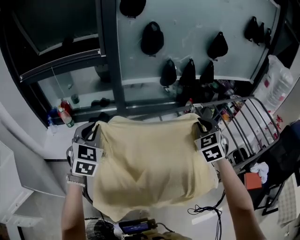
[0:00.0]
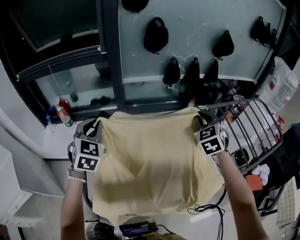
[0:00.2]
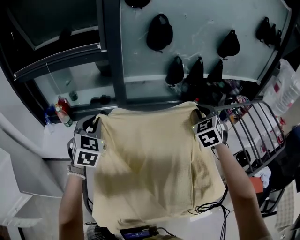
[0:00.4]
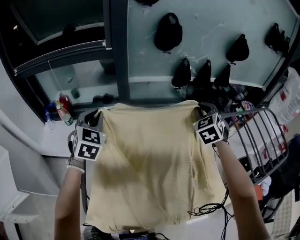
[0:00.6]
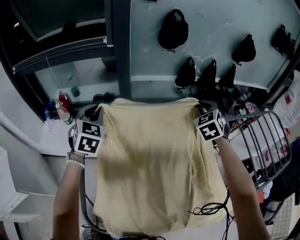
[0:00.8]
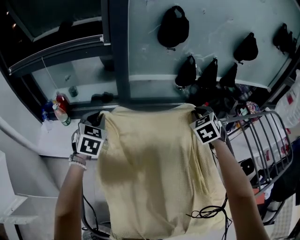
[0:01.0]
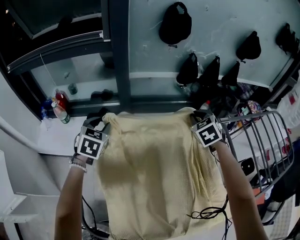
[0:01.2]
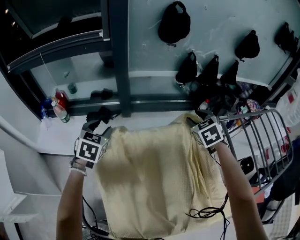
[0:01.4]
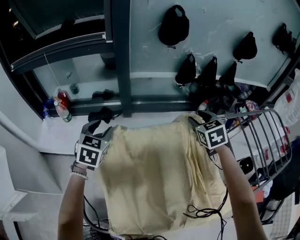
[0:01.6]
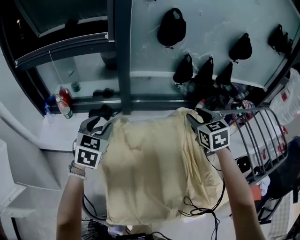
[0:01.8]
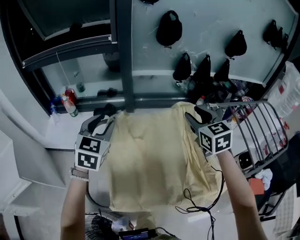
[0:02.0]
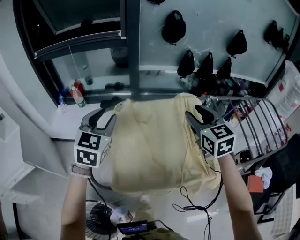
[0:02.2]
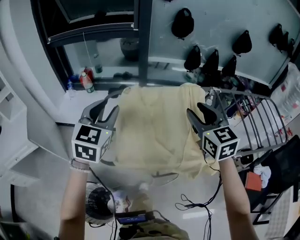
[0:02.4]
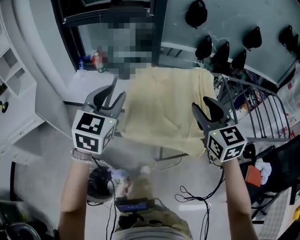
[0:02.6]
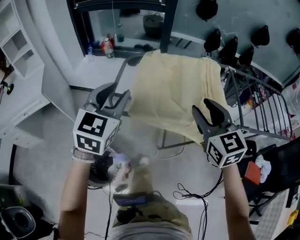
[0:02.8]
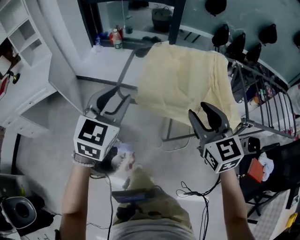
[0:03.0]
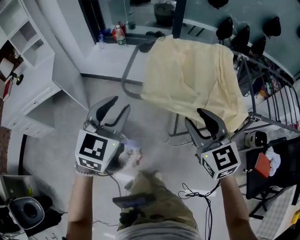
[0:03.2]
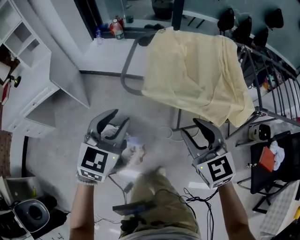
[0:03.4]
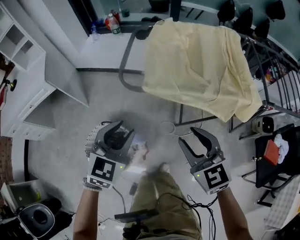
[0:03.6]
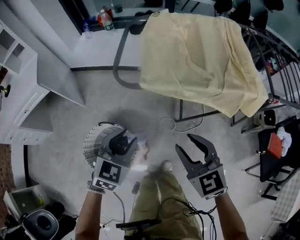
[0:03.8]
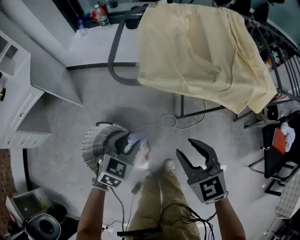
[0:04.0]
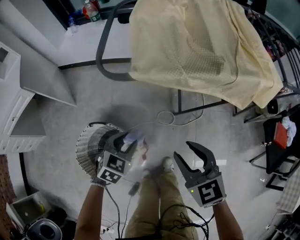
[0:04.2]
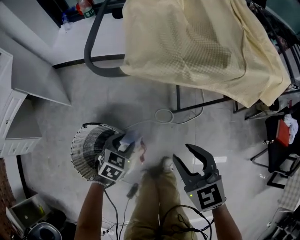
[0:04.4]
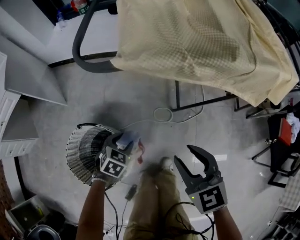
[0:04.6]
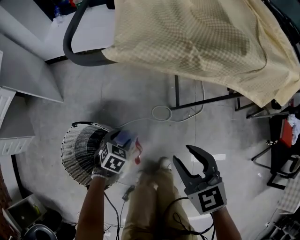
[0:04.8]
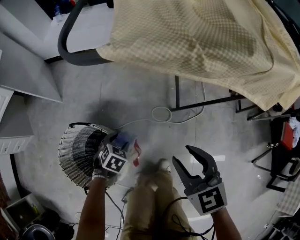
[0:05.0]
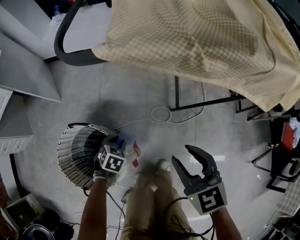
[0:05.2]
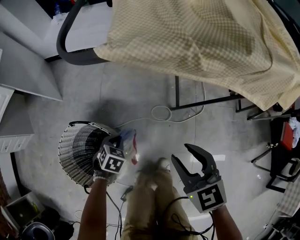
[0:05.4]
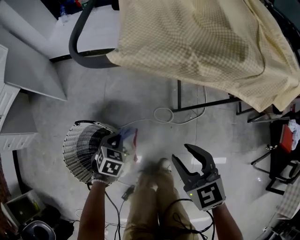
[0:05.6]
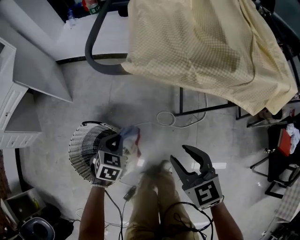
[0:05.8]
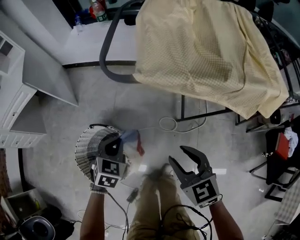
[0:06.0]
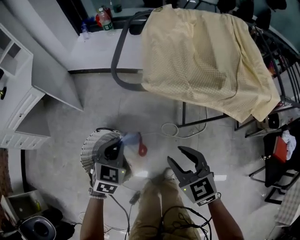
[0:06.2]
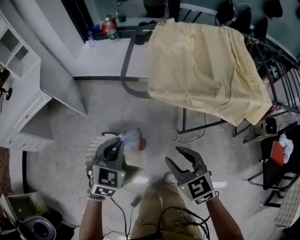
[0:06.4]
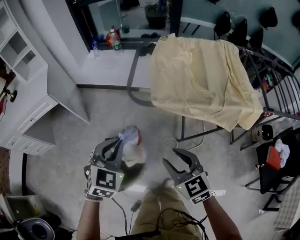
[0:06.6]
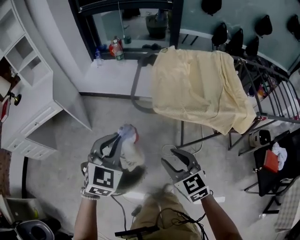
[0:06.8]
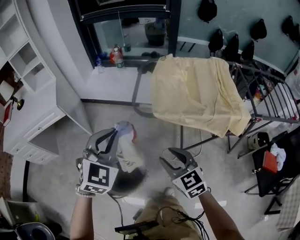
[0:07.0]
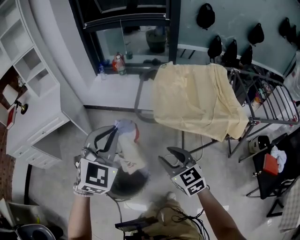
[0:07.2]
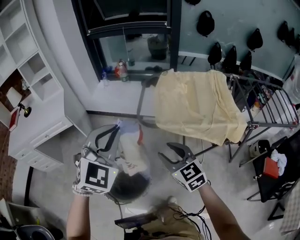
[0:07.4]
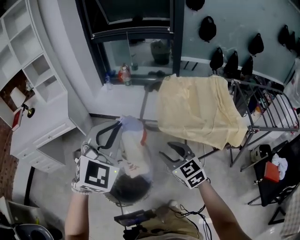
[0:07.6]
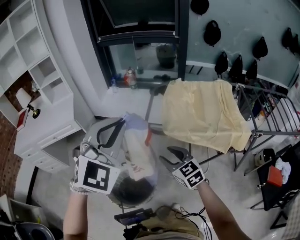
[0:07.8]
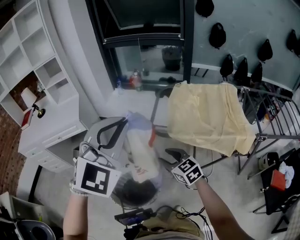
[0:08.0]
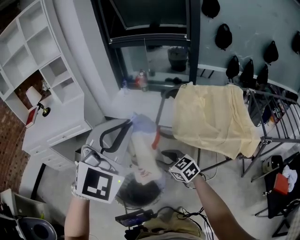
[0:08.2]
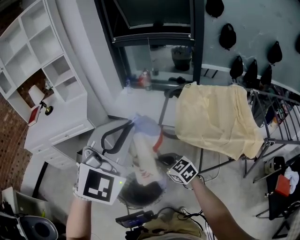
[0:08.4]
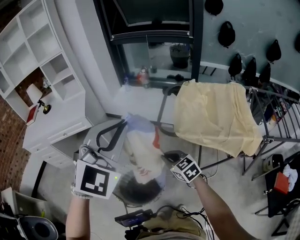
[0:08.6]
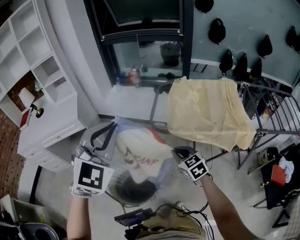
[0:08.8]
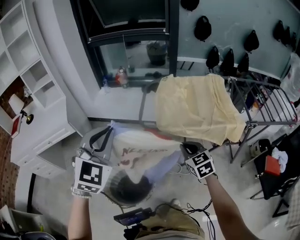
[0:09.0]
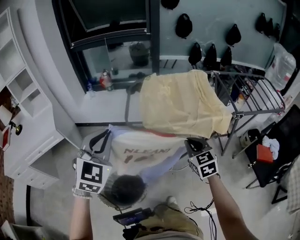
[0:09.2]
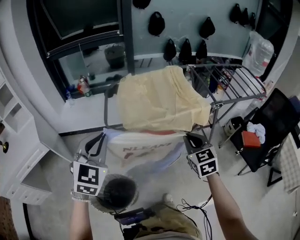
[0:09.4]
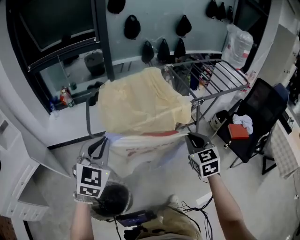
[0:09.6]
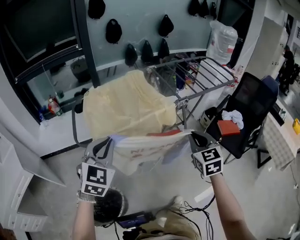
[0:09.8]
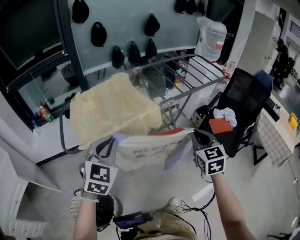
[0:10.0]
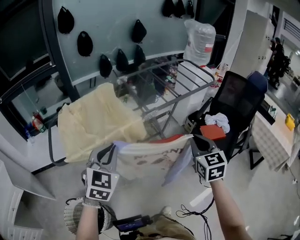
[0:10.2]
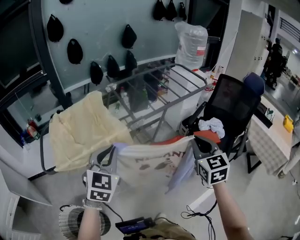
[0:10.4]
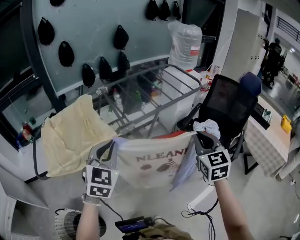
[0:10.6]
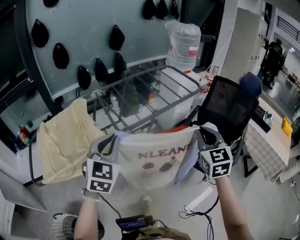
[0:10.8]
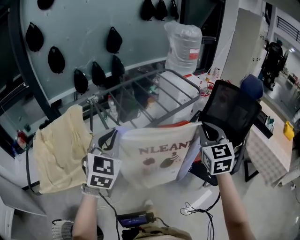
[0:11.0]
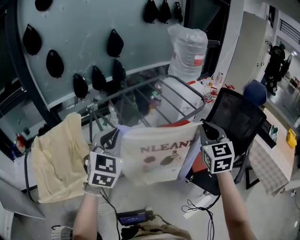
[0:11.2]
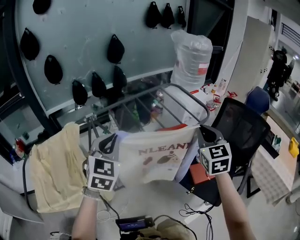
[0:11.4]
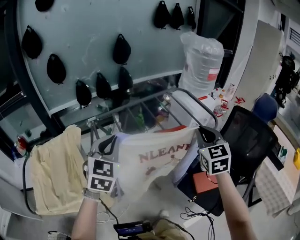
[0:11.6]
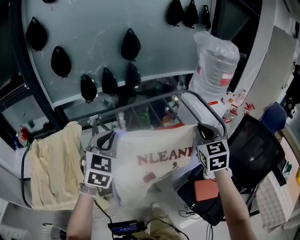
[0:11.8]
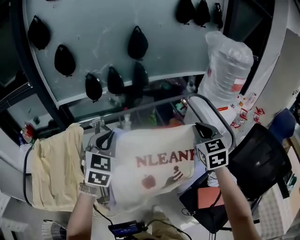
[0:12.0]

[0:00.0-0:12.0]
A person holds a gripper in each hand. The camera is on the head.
0.0 to 1.6 s: The left gripper shifts some 20 cm forward and downward, rotates approximately 20 degrees, and opens. The right gripper heads forward, downward and to the left, covering roughly 20 cm, and opens.
1.6 to 3.0 s: The pair of grippers is taken backward, some 50 cm. The right gripper changes its angle by some 40 degrees.
3.0 to 4.4 s: The left gripper travels downward by about 50 cm, and points its fingers roughly 40 degrees further downward, while the right gripper heads downward, covering roughly 30 cm, and rotates approximately 20 degrees.
4.4 to 6.0 s: The right gripper reaches some 10 cm downward, then returns. Meanwhile the left gripper travels downward and back again, about 15 cm each way, and closes up.
6.0 to 7.6 s: The left gripper travels upward by some 50 cm, and tilts its fingers some 40 degrees upward; the right gripper travels upward by about 25 cm.
7.6 to 9.0 s: The right gripper heads to the right, covering roughly 10 cm, and closes its fingers. Meanwhile the left gripper goes upward and returns, roughly 10 cm each way.
9.0 to 10.4 s: The two grippers travel together, about 60 cm. The right gripper changes its angle by some 50 degrees, while the left gripper rotates approximately 30 degrees.
10.4 to 12.0 s: The two grippers travel together, forward, roughly 50 cm.

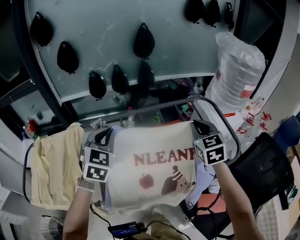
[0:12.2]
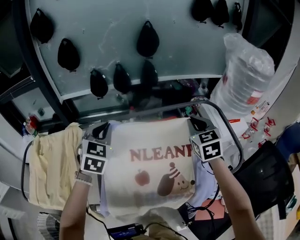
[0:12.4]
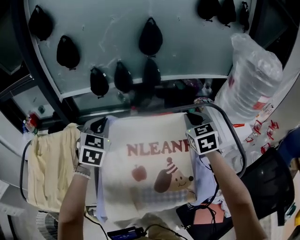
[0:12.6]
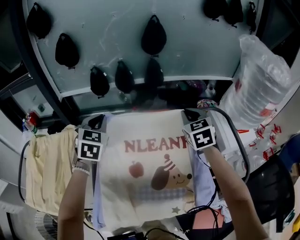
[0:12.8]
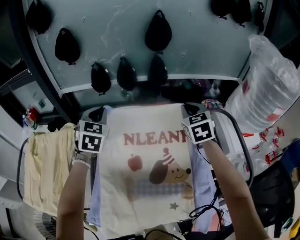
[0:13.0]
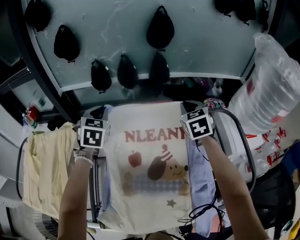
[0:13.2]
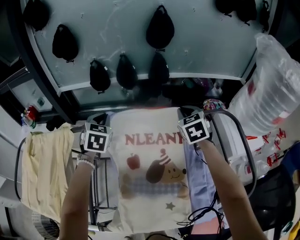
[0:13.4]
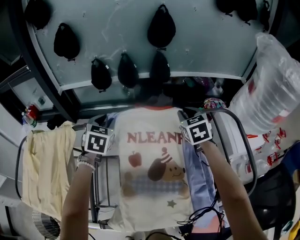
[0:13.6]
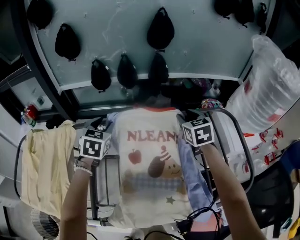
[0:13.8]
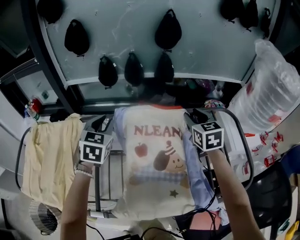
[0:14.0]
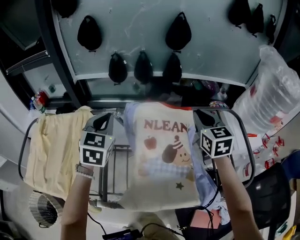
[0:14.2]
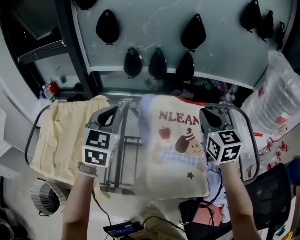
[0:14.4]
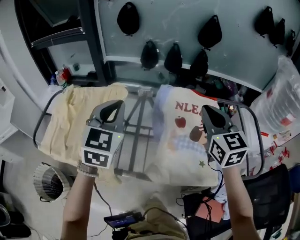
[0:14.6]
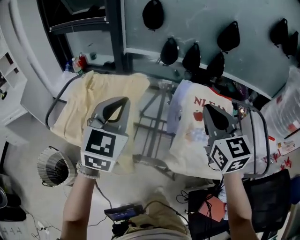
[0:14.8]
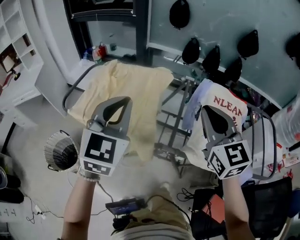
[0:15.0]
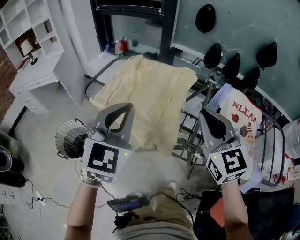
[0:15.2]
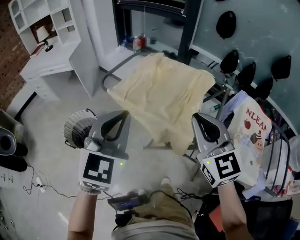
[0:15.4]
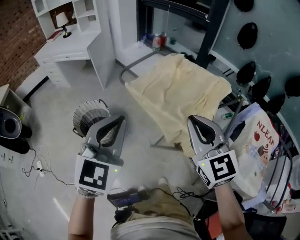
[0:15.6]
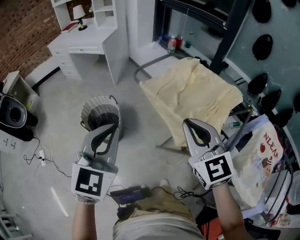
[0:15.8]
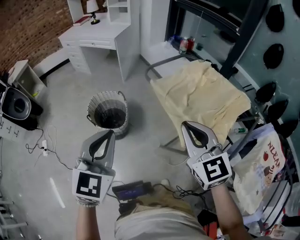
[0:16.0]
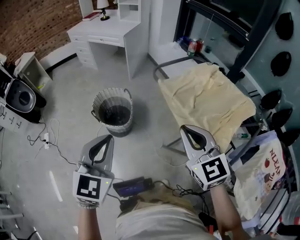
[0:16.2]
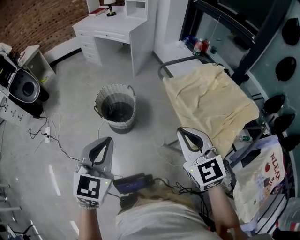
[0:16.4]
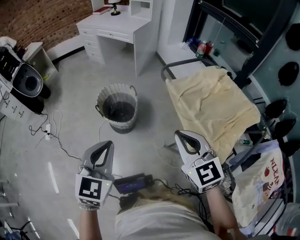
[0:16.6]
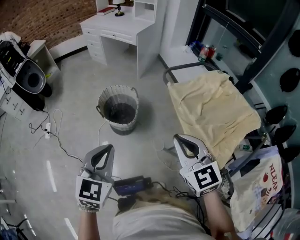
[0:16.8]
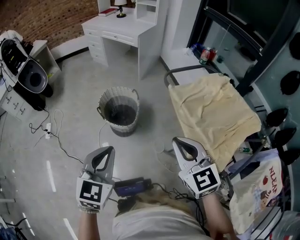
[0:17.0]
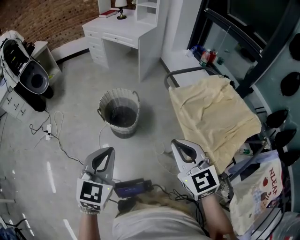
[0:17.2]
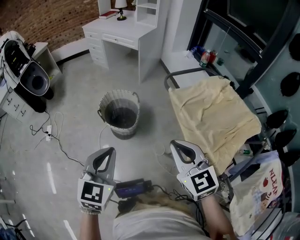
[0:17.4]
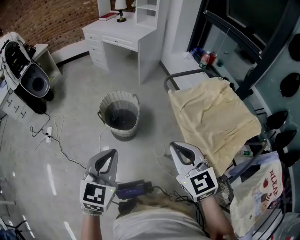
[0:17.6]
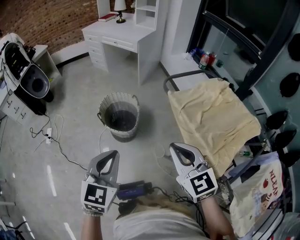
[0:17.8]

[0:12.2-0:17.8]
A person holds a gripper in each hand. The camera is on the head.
12.2 to 13.6 s: The two grippers go roughly 25 cm forward and downward. The left gripper swivels roughly 20 degrees, and opens.
13.6 to 15.0 s: The two grippers travel together, backward and to the left, roughly 50 cm. Both grippers travel together upward, some 20 cm. The left gripper rotates approximately 30 degrees, and closes its fingers; the right gripper changes its angle by approximately 40 degrees, and opens, then closes again.
15.0 to 16.4 s: The two grippers travel together, roughly 40 cm. The right gripper changes its angle by about 50 degrees; the left gripper turns by roughly 50 degrees.
16.4 to 17.8 s: The grippers move only a little.

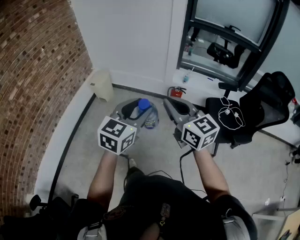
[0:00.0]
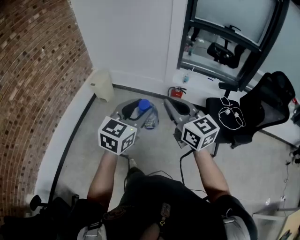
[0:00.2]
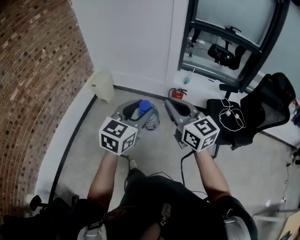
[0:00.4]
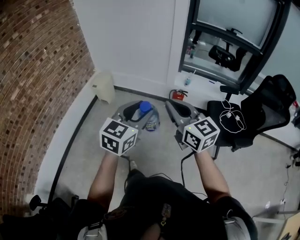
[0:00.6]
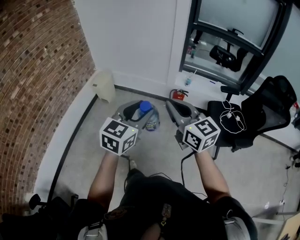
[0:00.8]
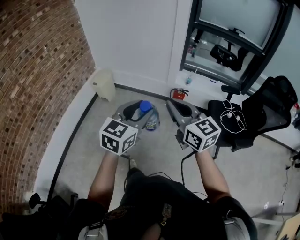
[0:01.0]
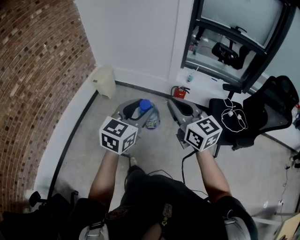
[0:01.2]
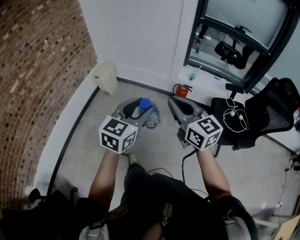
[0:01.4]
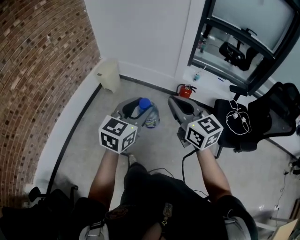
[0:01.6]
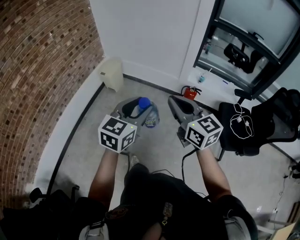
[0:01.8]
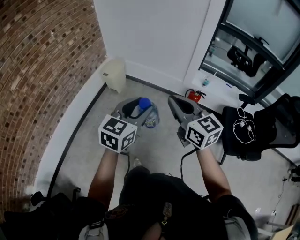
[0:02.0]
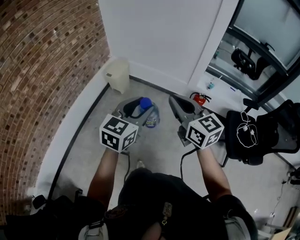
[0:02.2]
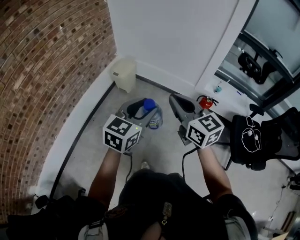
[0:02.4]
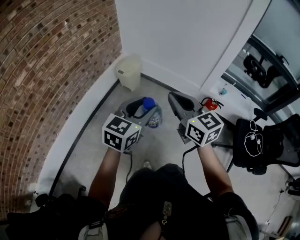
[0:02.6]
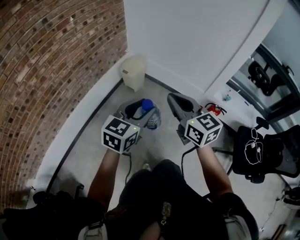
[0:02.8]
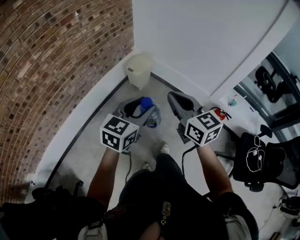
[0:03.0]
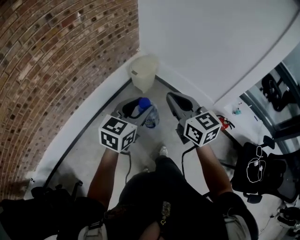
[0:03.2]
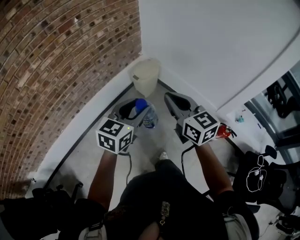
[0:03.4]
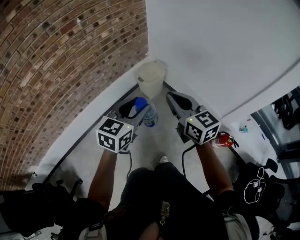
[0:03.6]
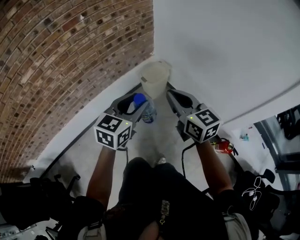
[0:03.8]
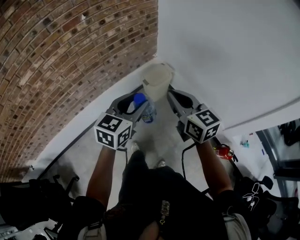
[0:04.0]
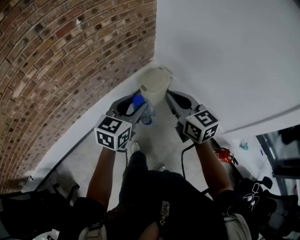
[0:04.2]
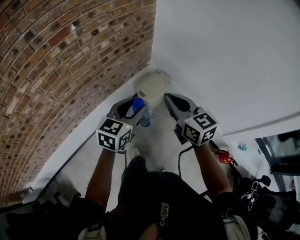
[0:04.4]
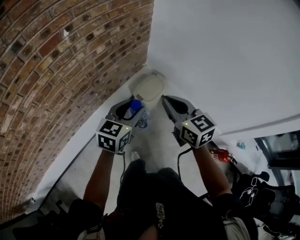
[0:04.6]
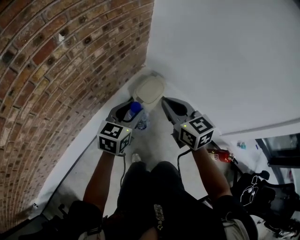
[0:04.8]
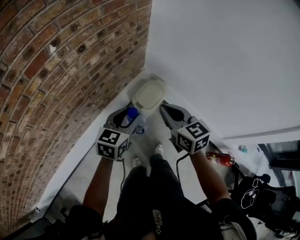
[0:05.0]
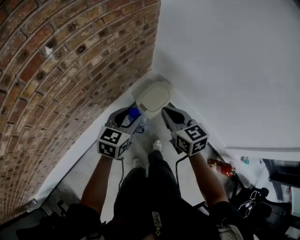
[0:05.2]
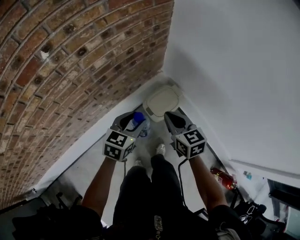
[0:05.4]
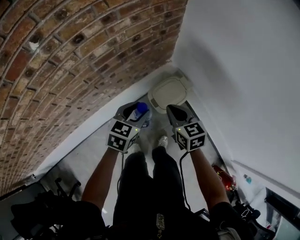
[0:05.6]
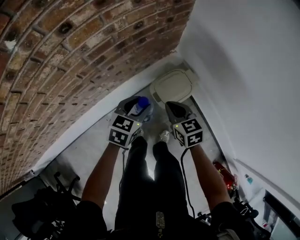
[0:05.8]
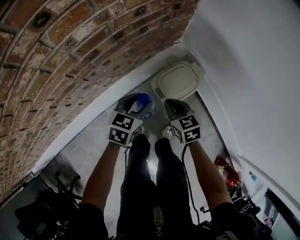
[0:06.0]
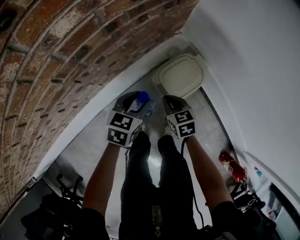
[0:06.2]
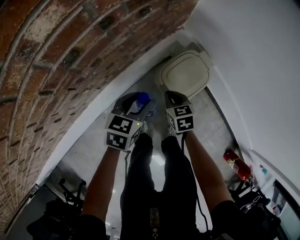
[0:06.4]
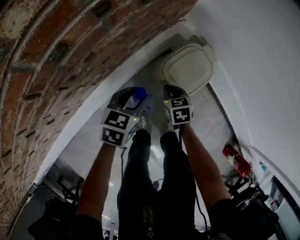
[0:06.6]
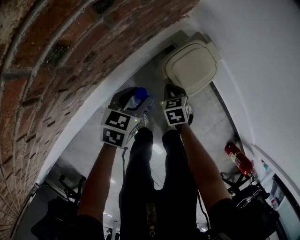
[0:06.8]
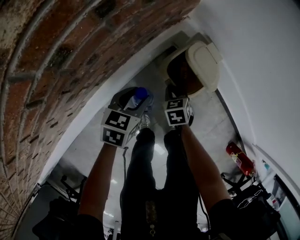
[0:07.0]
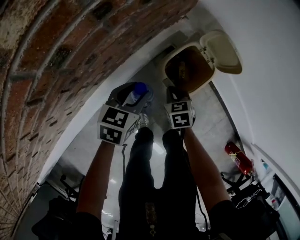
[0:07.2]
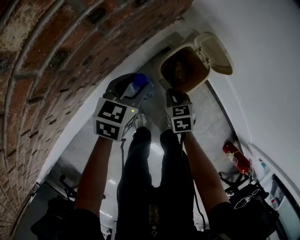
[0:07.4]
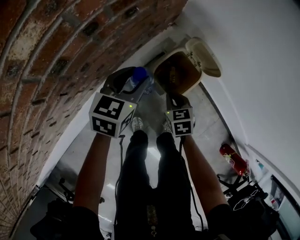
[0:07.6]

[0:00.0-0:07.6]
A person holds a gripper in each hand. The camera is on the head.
0.0 to 1.6 s: The right gripper shifts by roughly 5 cm. Meanwhile the left gripper ends up some 5 cm from where it was.
1.6 to 3.0 s: Both grippers travel together to the left and forward, about 35 cm.
3.0 to 4.6 s: Both grippers are carried forward, approximately 40 cm.
4.6 to 6.0 s: Both grippers move downward and forward, approximately 40 cm. The right gripper rotates about 30 degrees, while the left gripper swivels some 20 degrees.
6.0 to 7.6 s: The right gripper heads downward, covering about 15 cm, and swivels about 20 degrees. The left gripper is displaced forward by about 10 cm, and travels downward and back again, roughly 15 cm each way.
